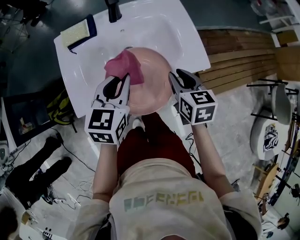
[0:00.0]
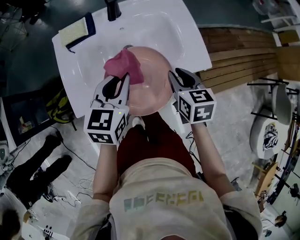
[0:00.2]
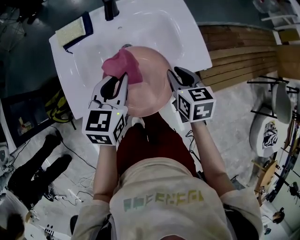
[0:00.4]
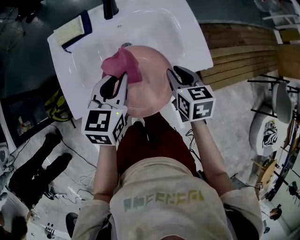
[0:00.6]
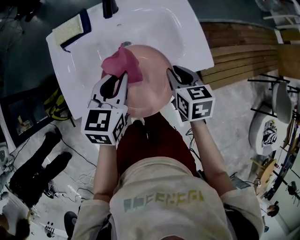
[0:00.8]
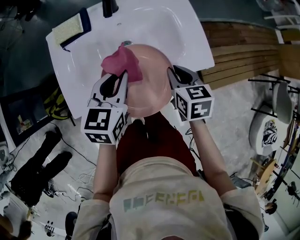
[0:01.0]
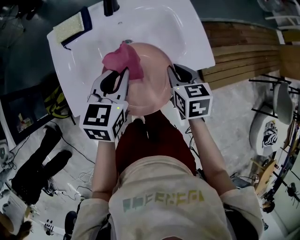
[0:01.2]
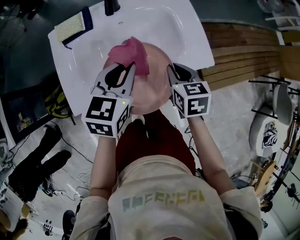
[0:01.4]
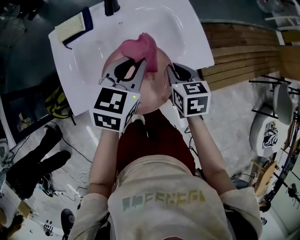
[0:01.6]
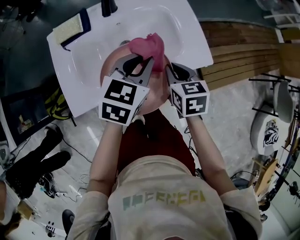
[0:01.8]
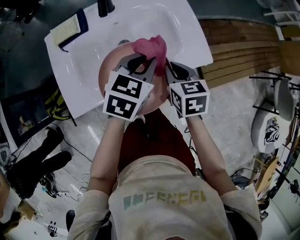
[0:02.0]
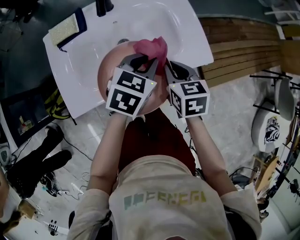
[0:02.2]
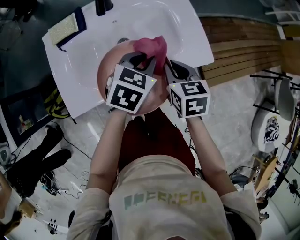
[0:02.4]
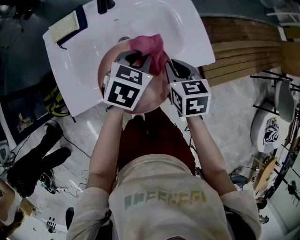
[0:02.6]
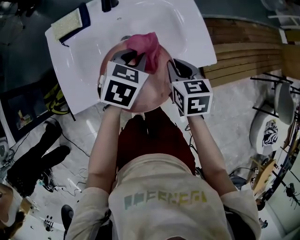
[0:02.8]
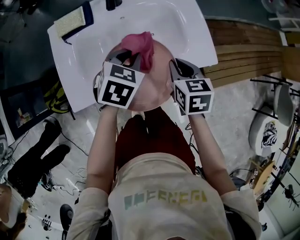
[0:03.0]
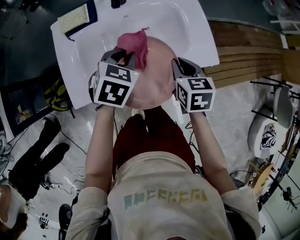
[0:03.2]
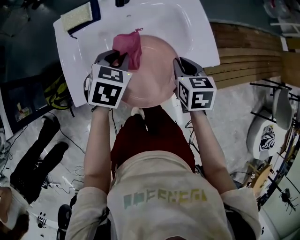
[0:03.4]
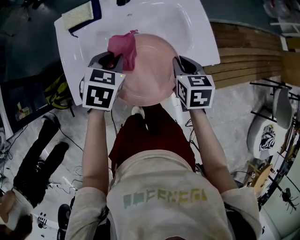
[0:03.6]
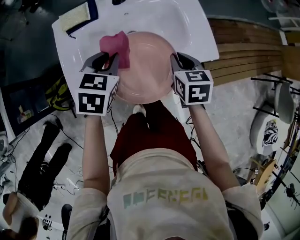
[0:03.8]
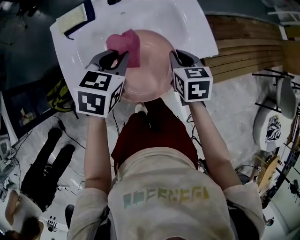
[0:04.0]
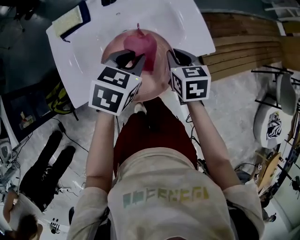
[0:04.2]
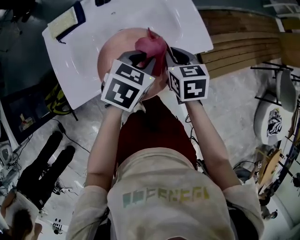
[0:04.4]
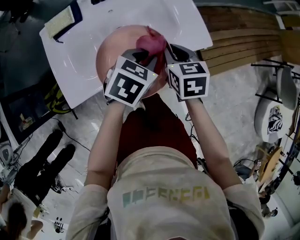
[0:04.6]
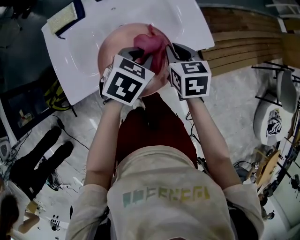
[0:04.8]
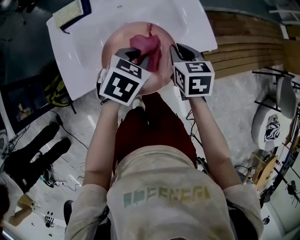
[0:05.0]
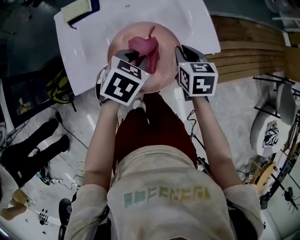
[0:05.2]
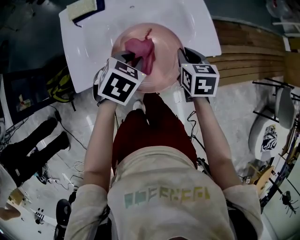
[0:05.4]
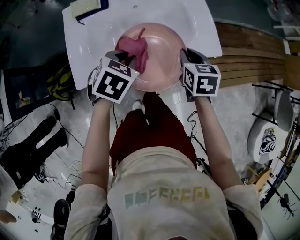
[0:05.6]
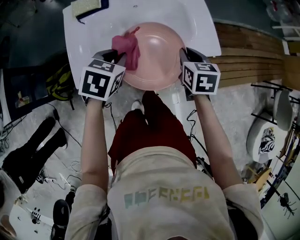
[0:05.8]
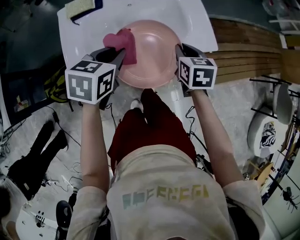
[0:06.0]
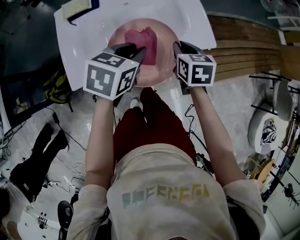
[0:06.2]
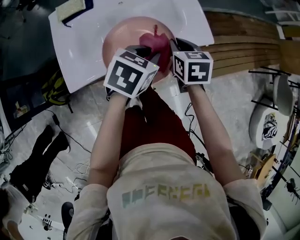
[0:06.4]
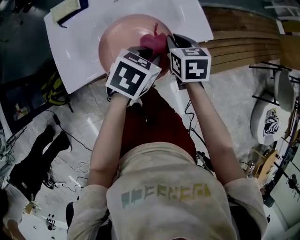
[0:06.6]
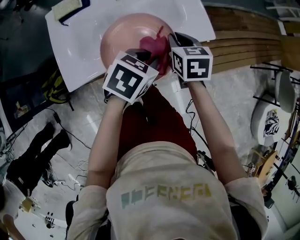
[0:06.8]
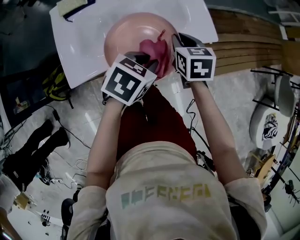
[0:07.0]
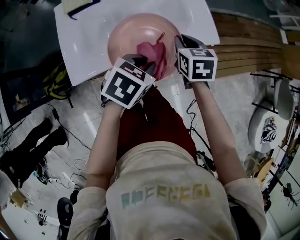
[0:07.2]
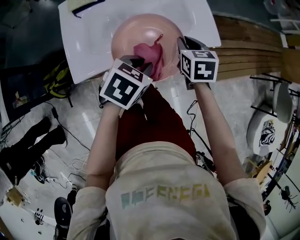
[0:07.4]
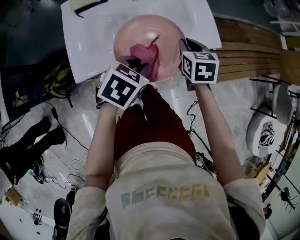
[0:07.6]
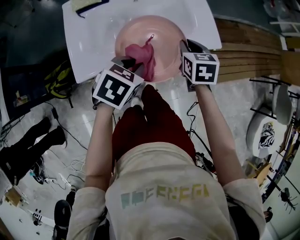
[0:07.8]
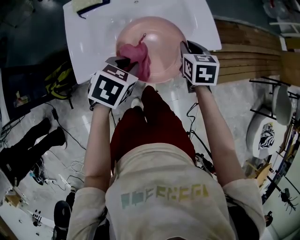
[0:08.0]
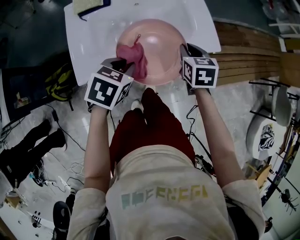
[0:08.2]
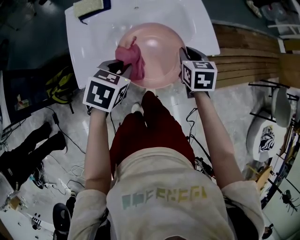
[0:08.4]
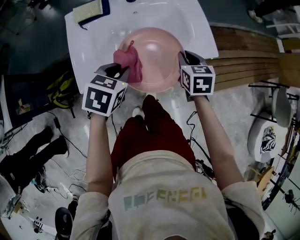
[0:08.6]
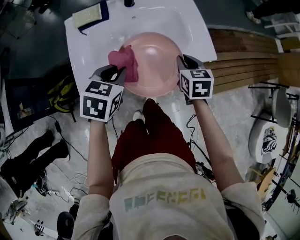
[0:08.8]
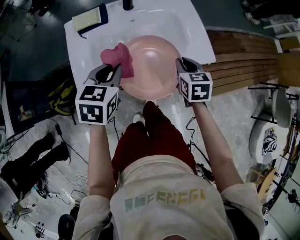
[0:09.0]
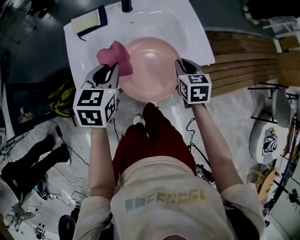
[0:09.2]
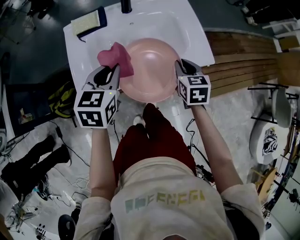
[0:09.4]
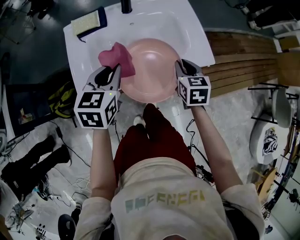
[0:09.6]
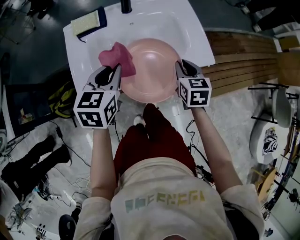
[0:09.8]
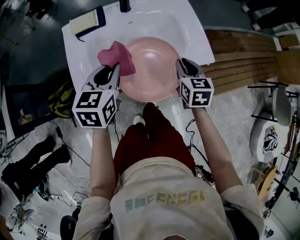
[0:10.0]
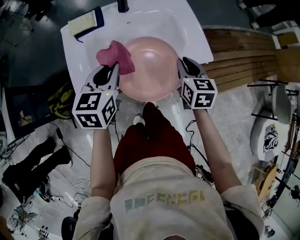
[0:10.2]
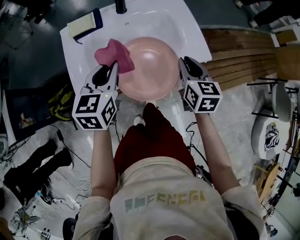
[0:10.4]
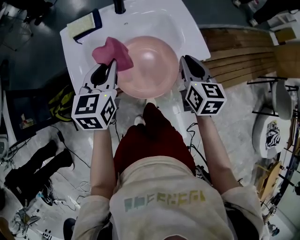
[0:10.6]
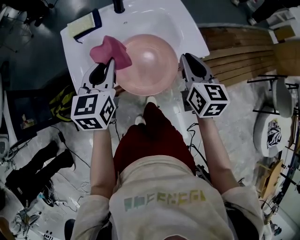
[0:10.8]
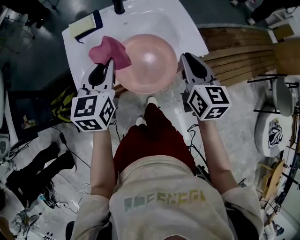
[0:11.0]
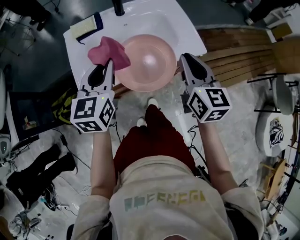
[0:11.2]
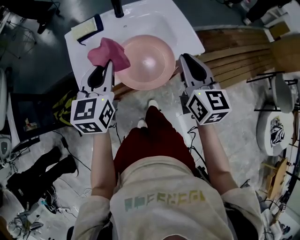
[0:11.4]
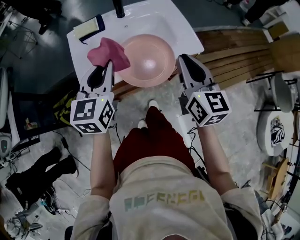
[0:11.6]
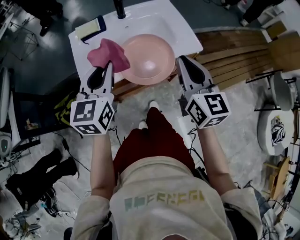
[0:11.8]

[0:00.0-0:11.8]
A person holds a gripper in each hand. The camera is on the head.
0:00.0 to 0:01.4: The grippers make only small movements.
0:01.4 to 0:03.0: The left gripper is displaced downward by some 5 cm, goes to the right and returns, some 10 cm each way, and swivels some 20 degrees.
0:03.0 to 0:04.4: The left gripper shifts approximately 5 cm to the right.
0:04.4 to 0:06.0: The left gripper heads to the left, covering roughly 10 cm, and rotates some 20 degrees.
0:06.0 to 0:07.4: The left gripper is displaced to the right by approximately 10 cm.
0:07.4 to 0:08.8: The left gripper shifts approximately 10 cm to the left.
0:08.8 to 0:10.4: The right gripper travels upward by some 5 cm. Meanwhile the left gripper shifts by some 5 cm, and swivels some 20 degrees.
0:10.4 to 0:11.8: The left gripper travels backward and upward by roughly 10 cm. Meanwhile the right gripper is displaced upward and backward by approximately 20 cm, and swivels roughly 20 degrees.

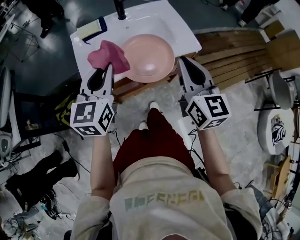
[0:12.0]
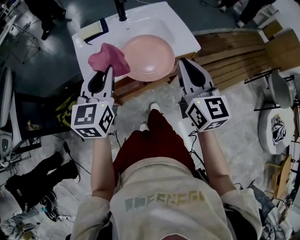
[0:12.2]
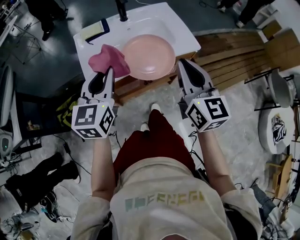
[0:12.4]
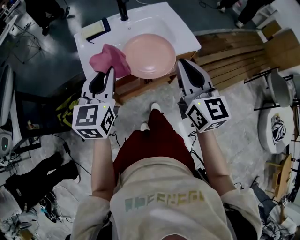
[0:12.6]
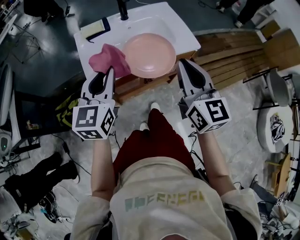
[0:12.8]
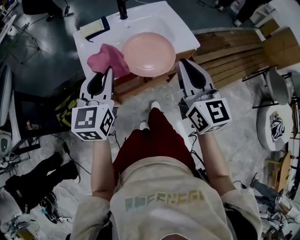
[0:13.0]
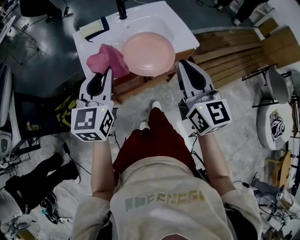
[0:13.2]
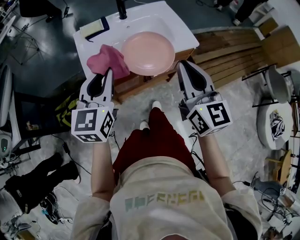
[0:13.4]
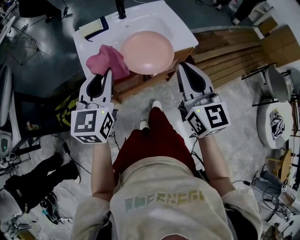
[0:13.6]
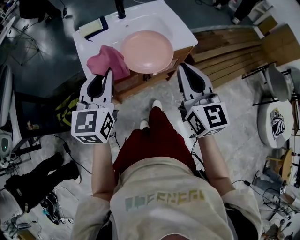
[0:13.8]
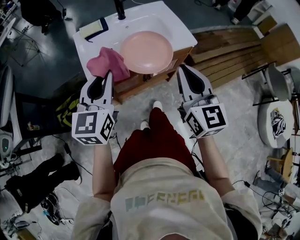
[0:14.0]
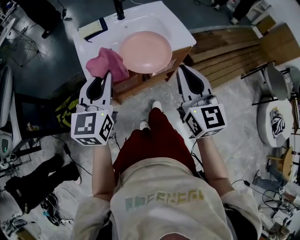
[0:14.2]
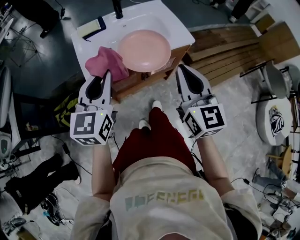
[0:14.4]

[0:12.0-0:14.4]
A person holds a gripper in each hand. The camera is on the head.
0:12.0 to 0:13.2: The grippers both shift backward by roughly 5 cm.
0:13.2 to 0:14.4: There are only small adjustments of the grippers.

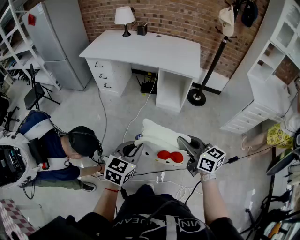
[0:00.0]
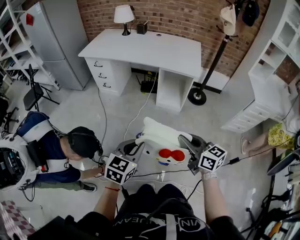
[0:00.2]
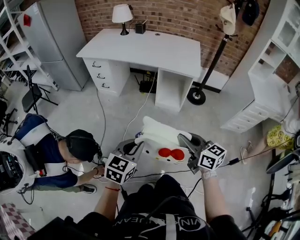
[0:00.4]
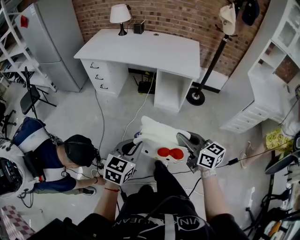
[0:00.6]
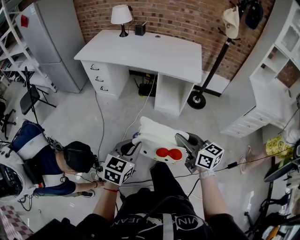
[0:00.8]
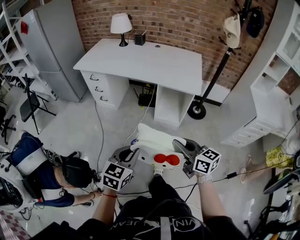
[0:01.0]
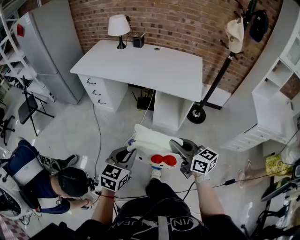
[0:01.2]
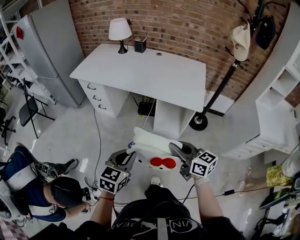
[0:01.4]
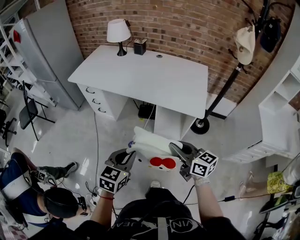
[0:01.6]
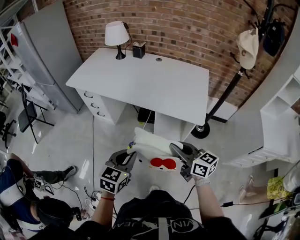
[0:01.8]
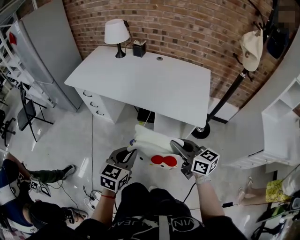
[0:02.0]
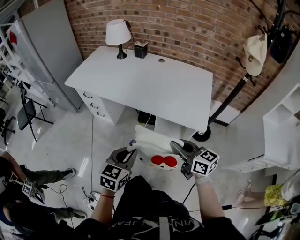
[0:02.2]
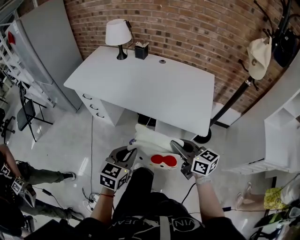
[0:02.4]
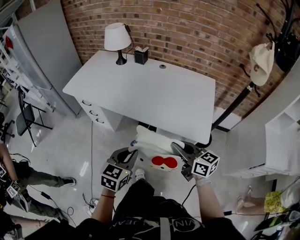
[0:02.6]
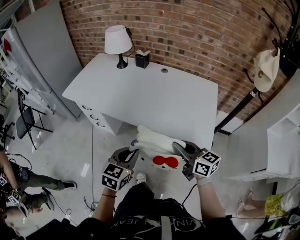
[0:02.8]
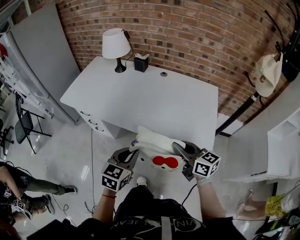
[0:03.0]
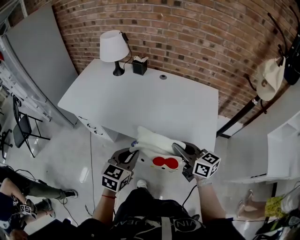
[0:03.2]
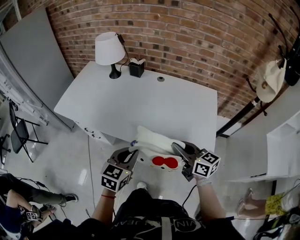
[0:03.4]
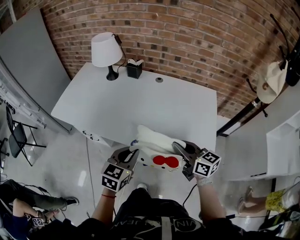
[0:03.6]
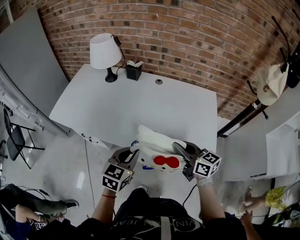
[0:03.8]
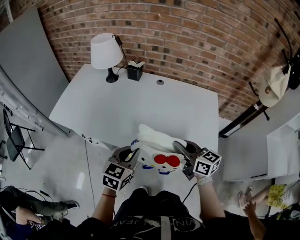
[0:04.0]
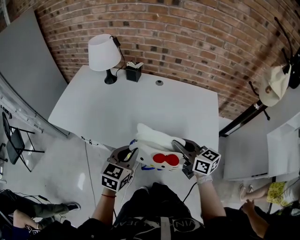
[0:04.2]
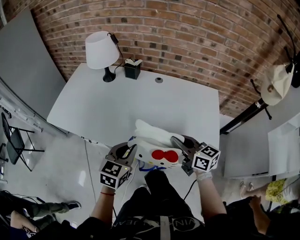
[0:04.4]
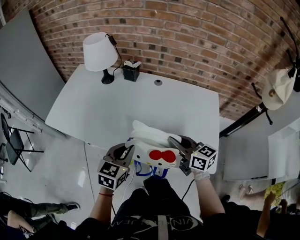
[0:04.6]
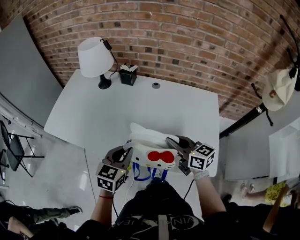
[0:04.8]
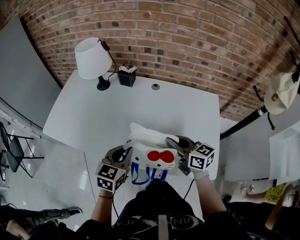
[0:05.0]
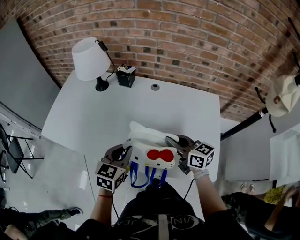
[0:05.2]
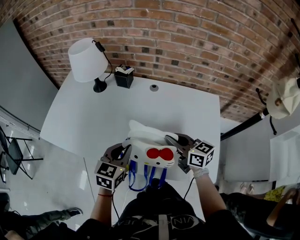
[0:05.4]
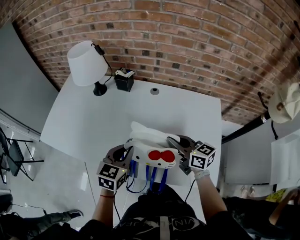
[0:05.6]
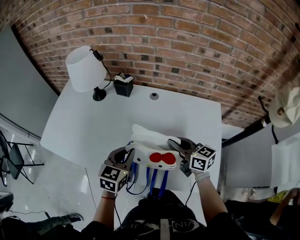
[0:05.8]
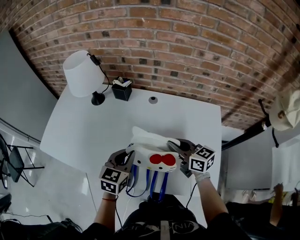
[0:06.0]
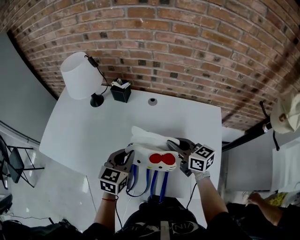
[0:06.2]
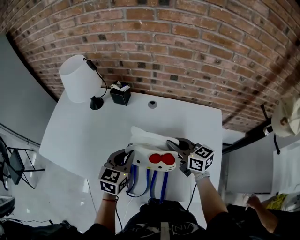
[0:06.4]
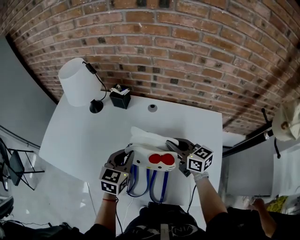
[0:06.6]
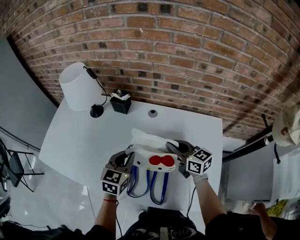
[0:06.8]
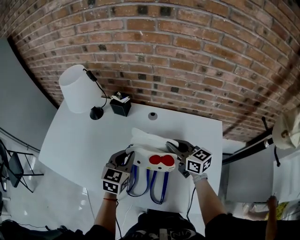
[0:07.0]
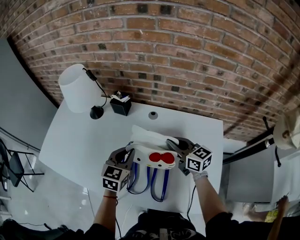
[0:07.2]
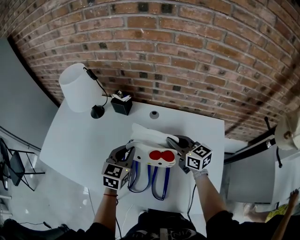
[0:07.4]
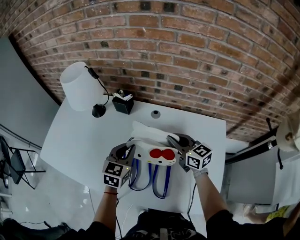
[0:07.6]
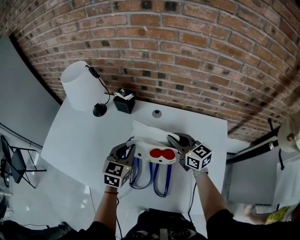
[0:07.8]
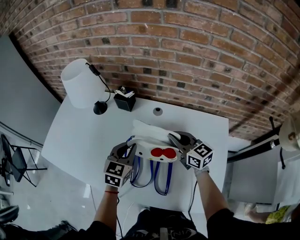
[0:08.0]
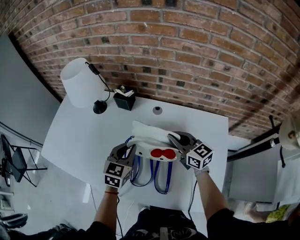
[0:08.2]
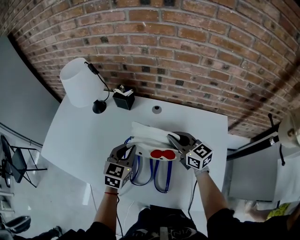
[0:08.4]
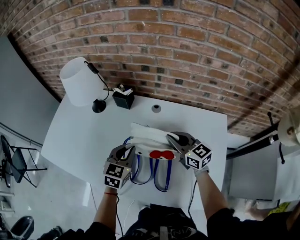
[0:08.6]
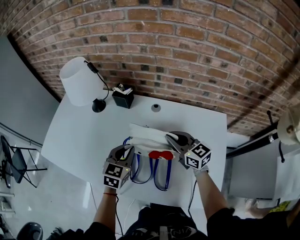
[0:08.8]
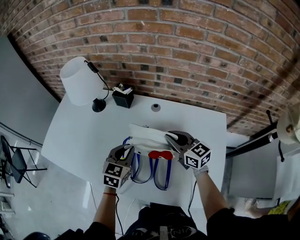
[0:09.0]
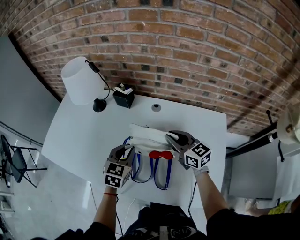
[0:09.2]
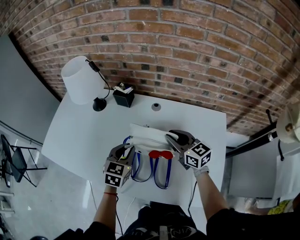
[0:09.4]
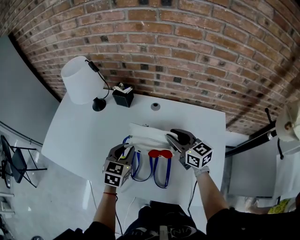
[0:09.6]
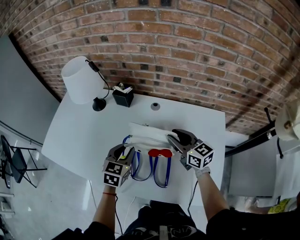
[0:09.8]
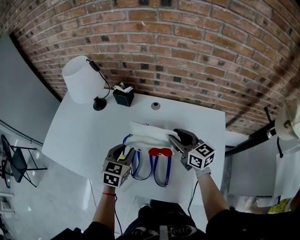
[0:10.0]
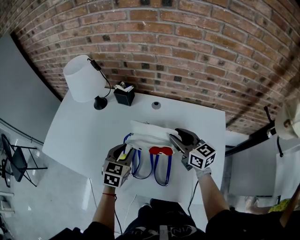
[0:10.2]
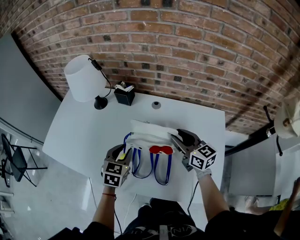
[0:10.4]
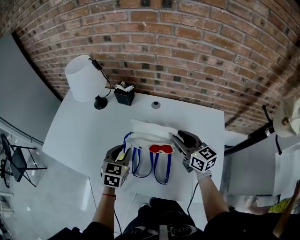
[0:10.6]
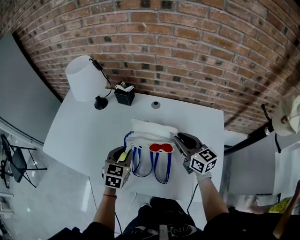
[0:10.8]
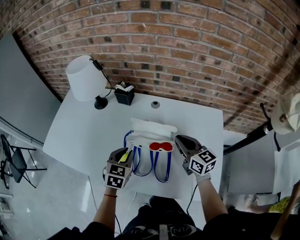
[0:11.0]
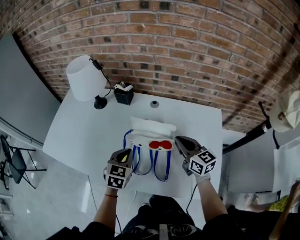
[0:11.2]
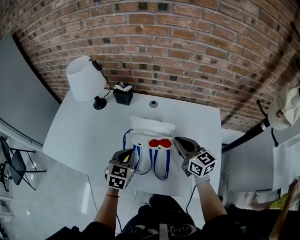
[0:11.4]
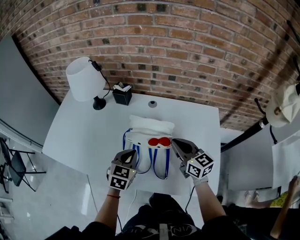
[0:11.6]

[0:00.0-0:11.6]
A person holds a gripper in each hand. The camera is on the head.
0:00.0 to 0:01.4: Both grippers travel together forward, some 25 cm.
0:01.4 to 0:02.8: The two grippers go about 25 cm forward.
0:02.8 to 0:04.4: The two grippers go some 20 cm forward.
0:04.4 to 0:05.8: The grippers both shift forward by about 15 cm.
0:05.8 to 0:07.2: Both grippers travel together forward, roughly 10 cm.
0:07.2 to 0:08.8: The grippers stay close to where they were, moving slightly.
0:08.8 to 0:10.2: The right gripper opens.
0:10.2 to 0:11.6: Both grippers travel together backward, approximately 5 cm. The left gripper closes its fingers; the right gripper closes.
